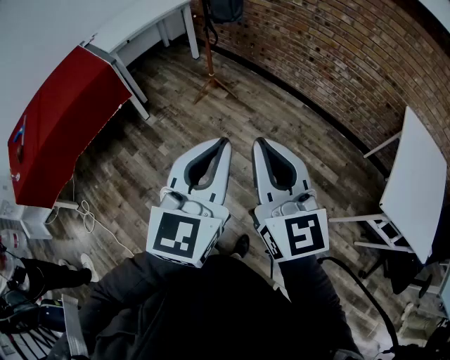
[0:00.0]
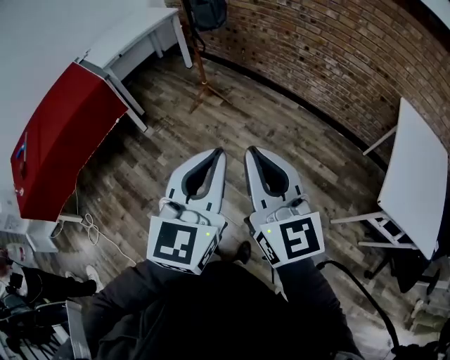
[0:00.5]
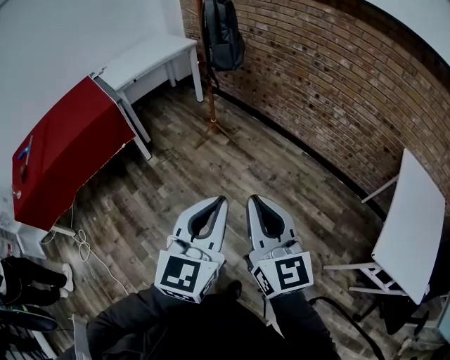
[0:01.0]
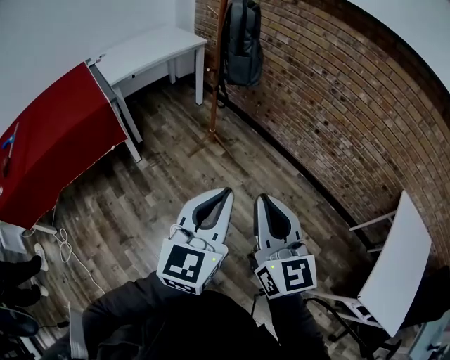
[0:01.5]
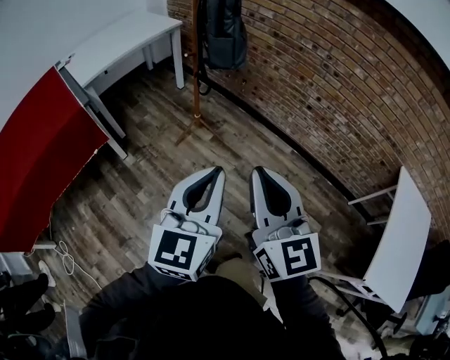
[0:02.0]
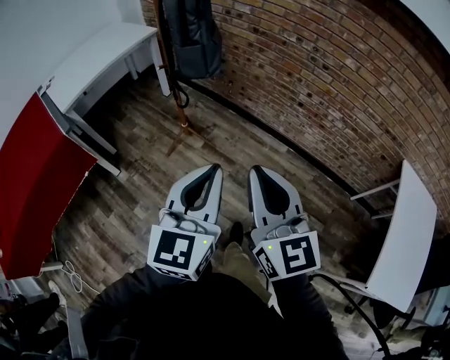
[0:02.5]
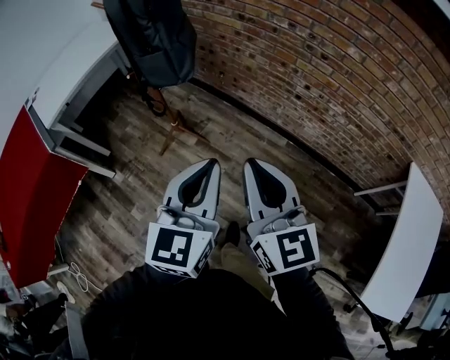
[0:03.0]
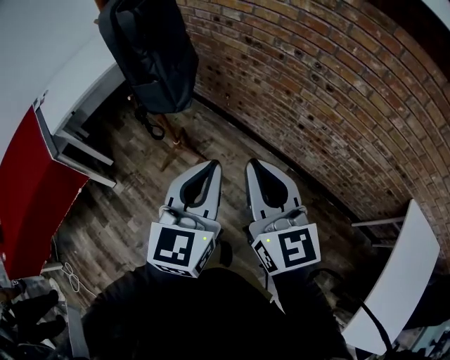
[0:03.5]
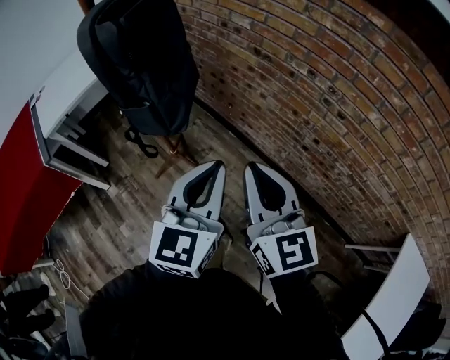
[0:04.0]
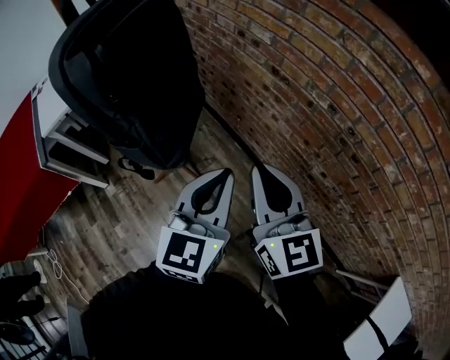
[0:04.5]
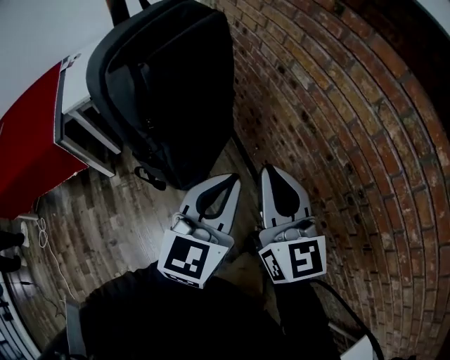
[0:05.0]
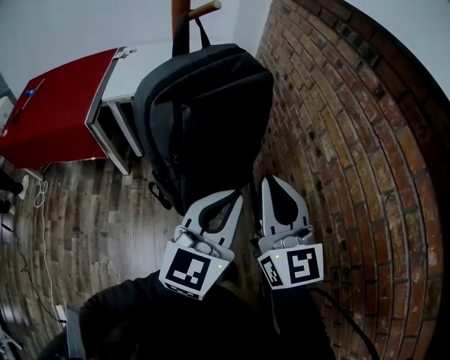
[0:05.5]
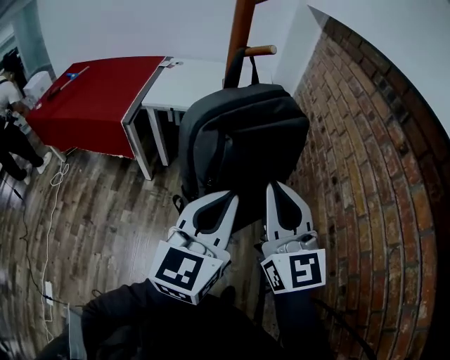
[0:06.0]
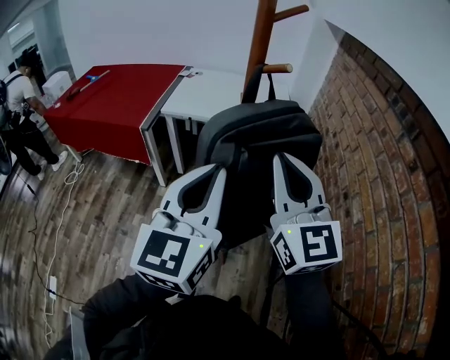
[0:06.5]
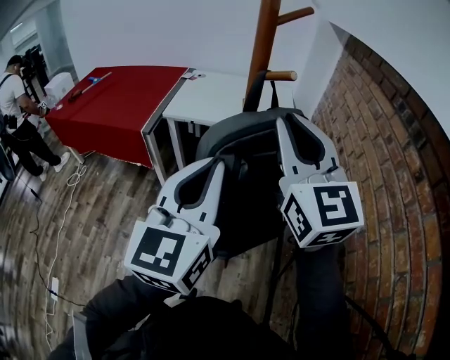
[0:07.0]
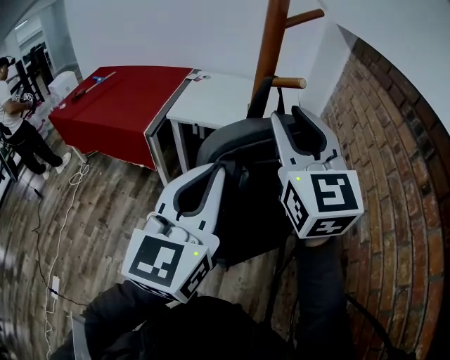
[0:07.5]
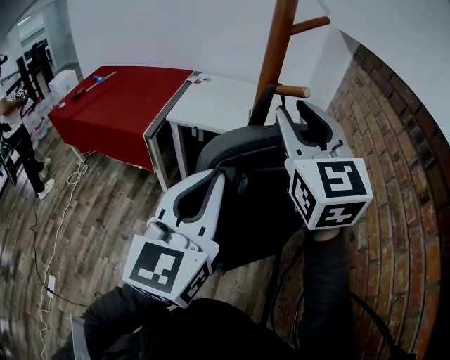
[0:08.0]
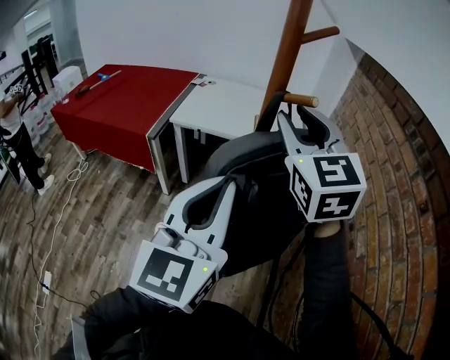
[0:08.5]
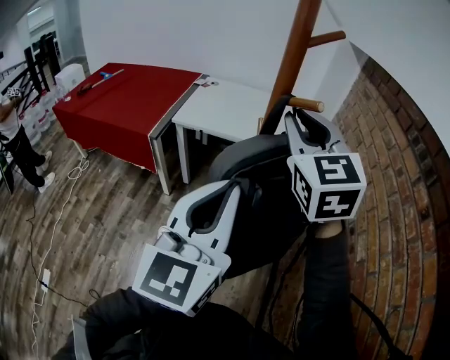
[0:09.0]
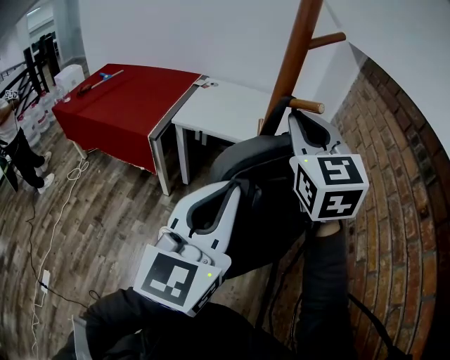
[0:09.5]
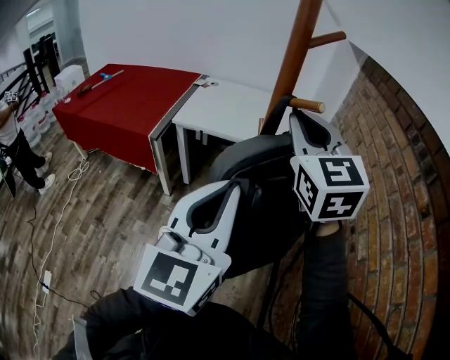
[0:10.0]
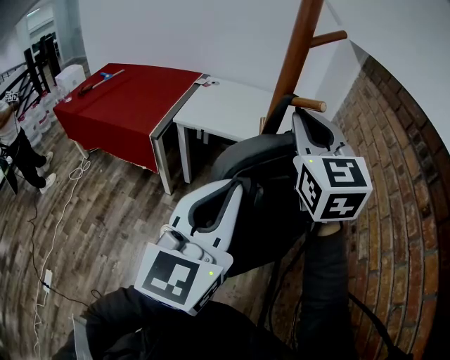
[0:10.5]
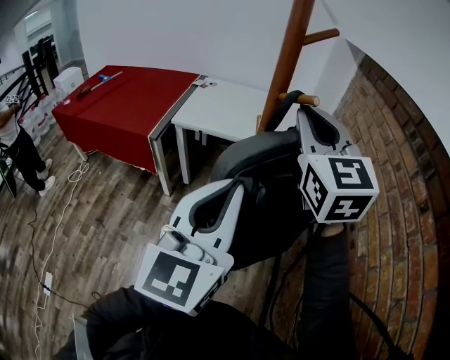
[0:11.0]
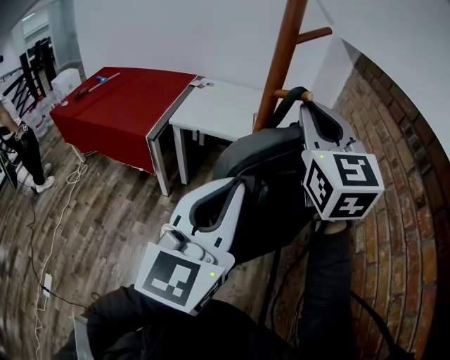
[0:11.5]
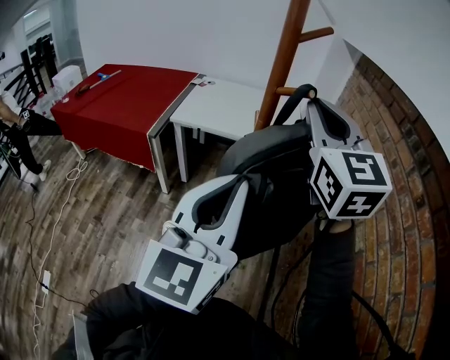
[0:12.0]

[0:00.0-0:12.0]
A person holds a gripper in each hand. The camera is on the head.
0:00.0 to 0:02.0: Both grippers travel together forward, roughly 30 cm.
0:02.0 to 0:04.0: The two grippers travel together, forward and to the right, roughly 50 cm.
0:04.0 to 0:06.0: The left gripper moves roughly 30 cm, and turns by some 50 degrees, while the right gripper shifts by roughly 35 cm, and changes its angle by approximately 50 degrees.
0:06.0 to 0:08.0: The left gripper moves upward, forward and to the left, approximately 15 cm. Meanwhile the right gripper moves forward and upward, roughly 20 cm, and opens.
0:08.0 to 0:10.0: The right gripper closes its fingers.
0:10.0 to 0:12.0: The right gripper moves some 5 cm.

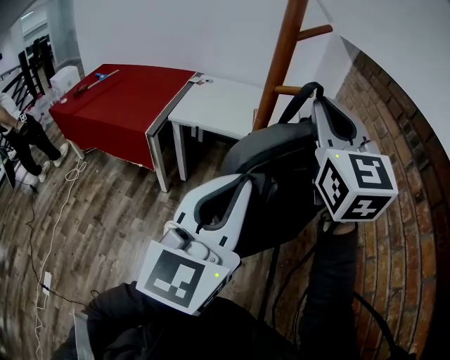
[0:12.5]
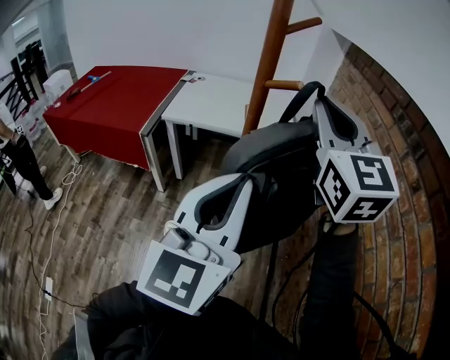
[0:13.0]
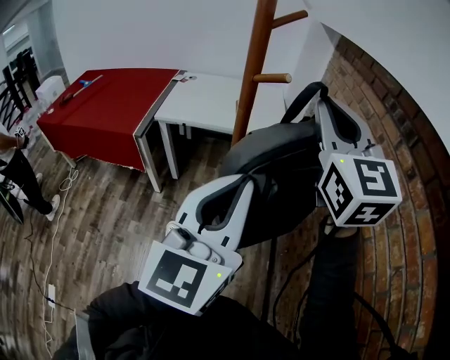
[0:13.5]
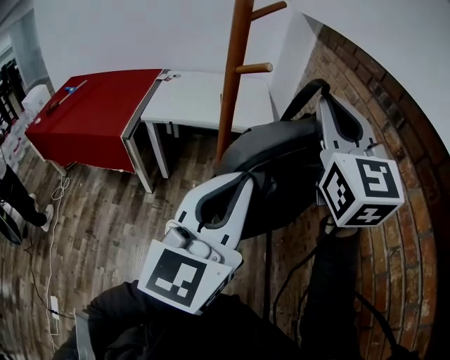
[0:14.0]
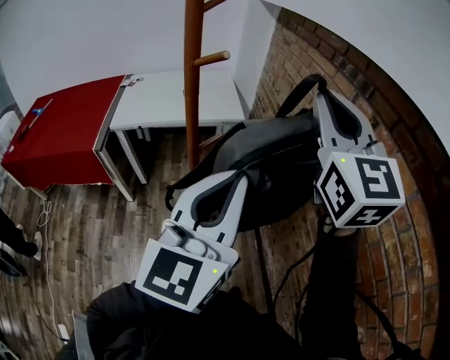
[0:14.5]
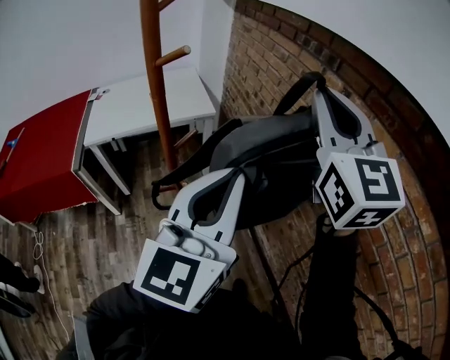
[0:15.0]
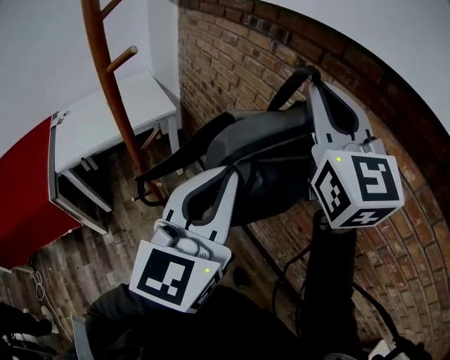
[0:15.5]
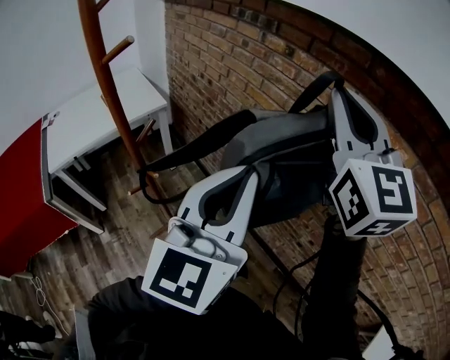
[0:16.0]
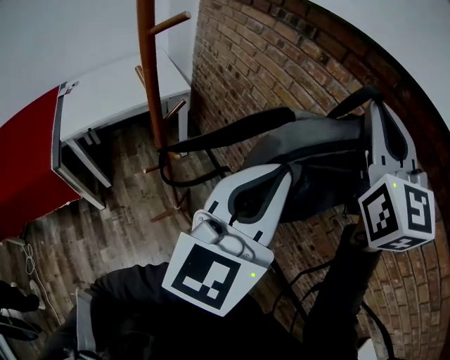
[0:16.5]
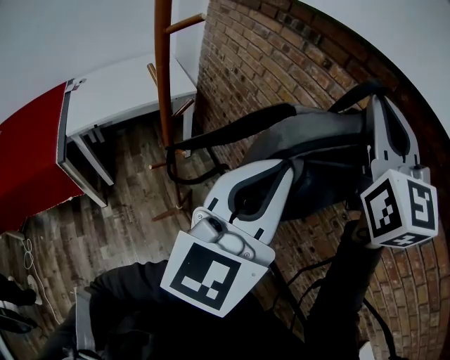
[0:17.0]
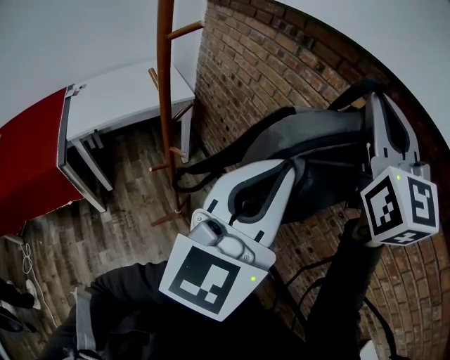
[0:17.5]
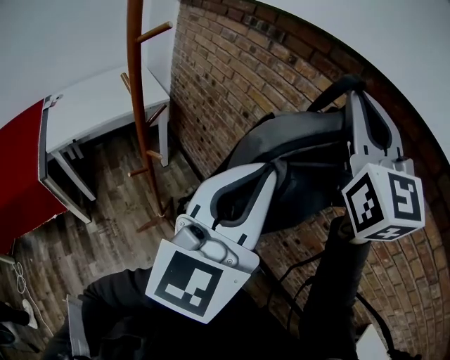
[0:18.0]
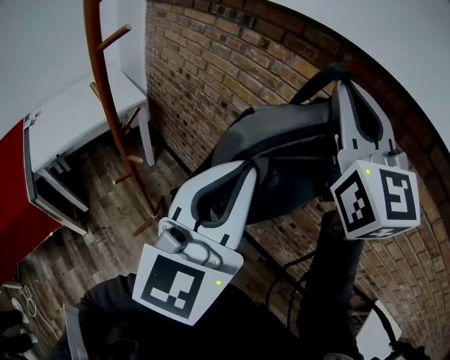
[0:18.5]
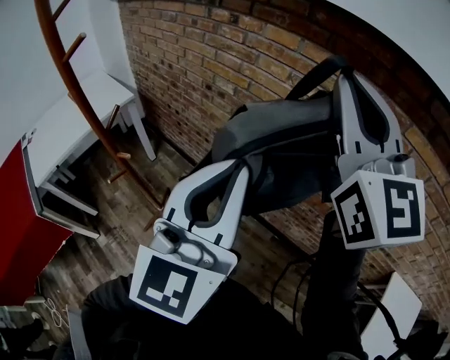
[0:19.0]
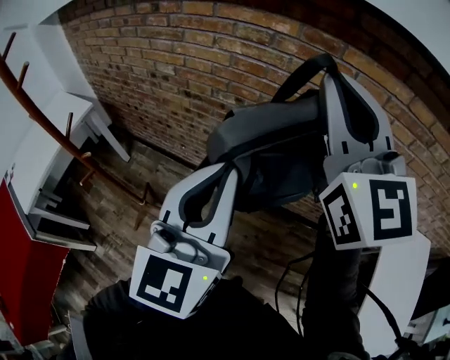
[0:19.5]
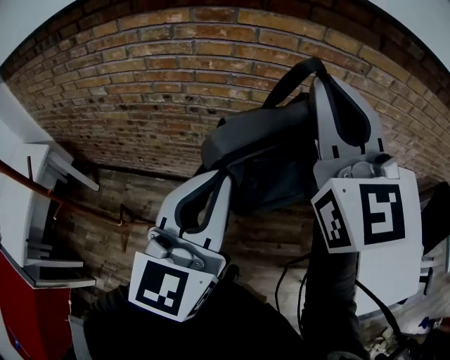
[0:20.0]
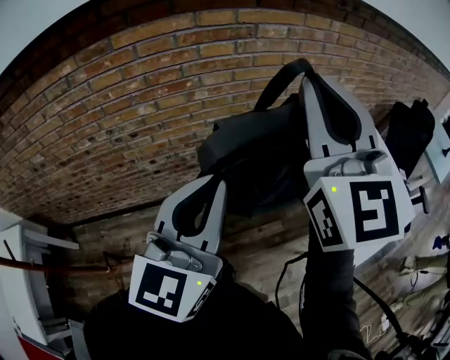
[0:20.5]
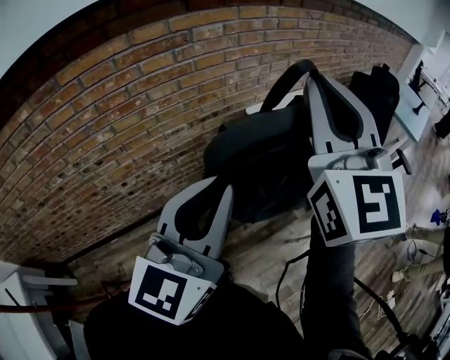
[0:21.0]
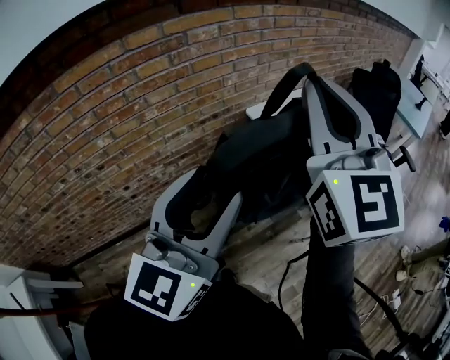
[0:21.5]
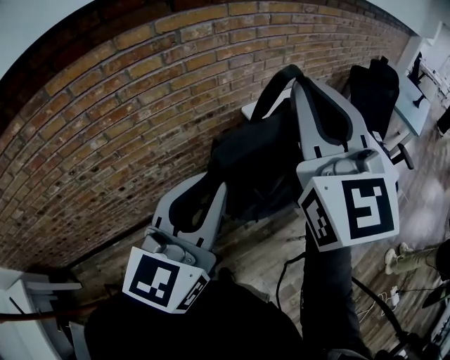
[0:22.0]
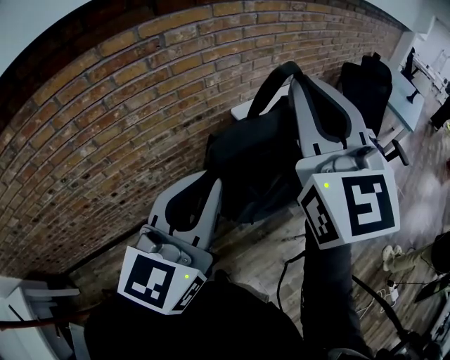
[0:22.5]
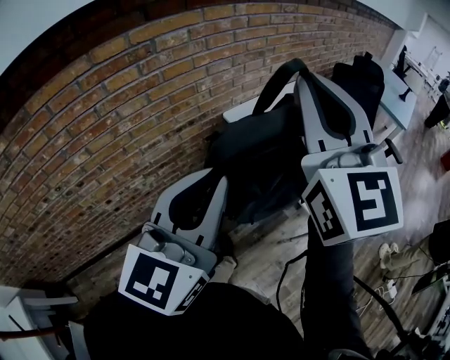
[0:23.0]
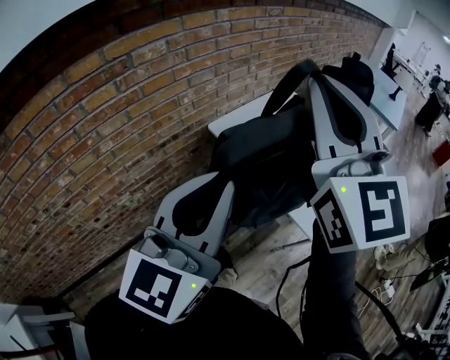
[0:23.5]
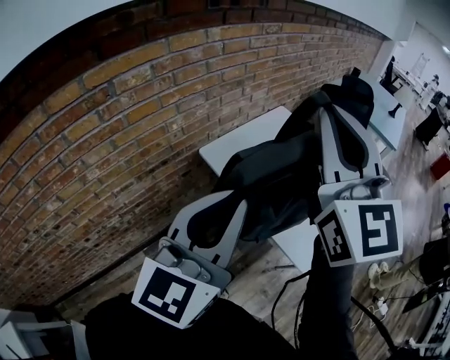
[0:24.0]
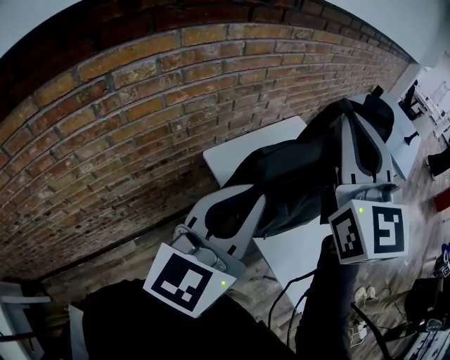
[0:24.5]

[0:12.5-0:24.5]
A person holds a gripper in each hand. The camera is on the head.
0:12.5 to 0:14.5: The right gripper moves to the right and backward, approximately 15 cm, and swivels roughly 20 degrees. Meanwhile the left gripper goes about 10 cm to the right, and swivels some 20 degrees.
0:14.5 to 0:16.5: The right gripper moves approximately 20 cm, and turns by some 30 degrees. Meanwhile the left gripper changes place by approximately 10 cm, and changes its angle by about 30 degrees.
0:16.5 to 0:18.5: The grippers both shift backward by approximately 5 cm.
0:18.5 to 0:20.5: The two grippers travel together, about 60 cm. The left gripper changes its angle by roughly 60 degrees. The right gripper rotates approximately 60 degrees.
0:20.5 to 0:22.5: The left gripper is displaced to the right and forward by roughly 15 cm, changes its angle by roughly 20 degrees, and opens, then closes again, while the right gripper is displaced to the right by approximately 15 cm.
0:22.5 to 0:24.5: Both grippers move forward and to the right, about 25 cm.

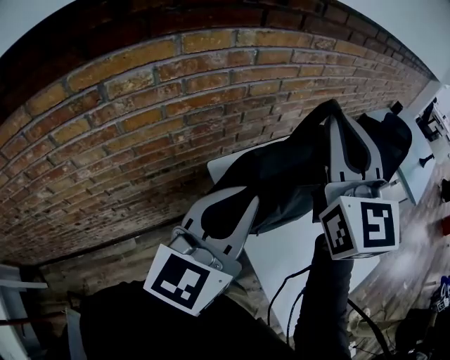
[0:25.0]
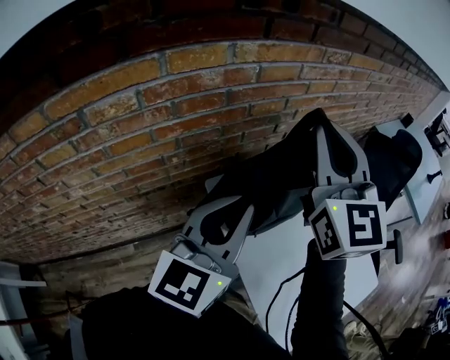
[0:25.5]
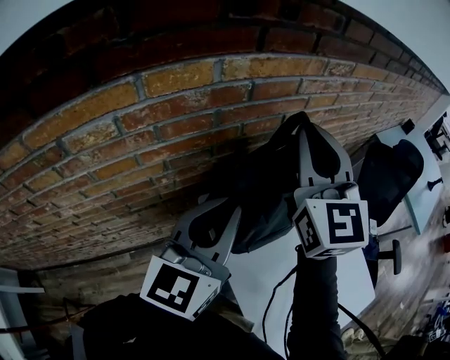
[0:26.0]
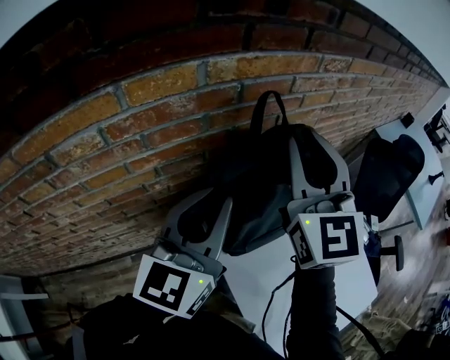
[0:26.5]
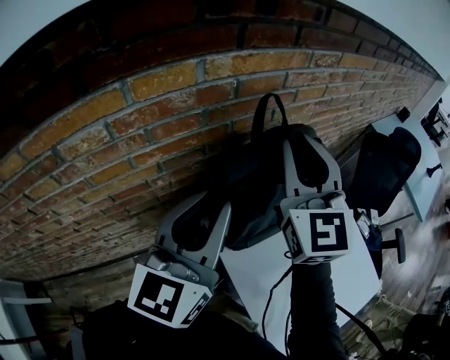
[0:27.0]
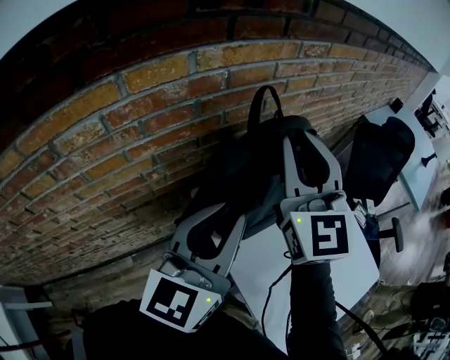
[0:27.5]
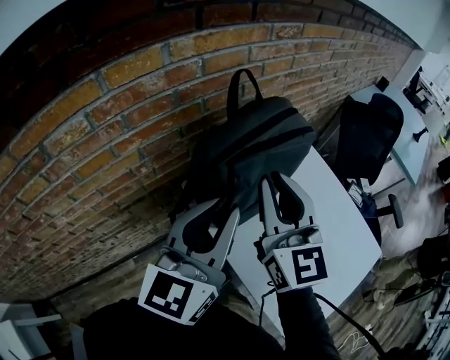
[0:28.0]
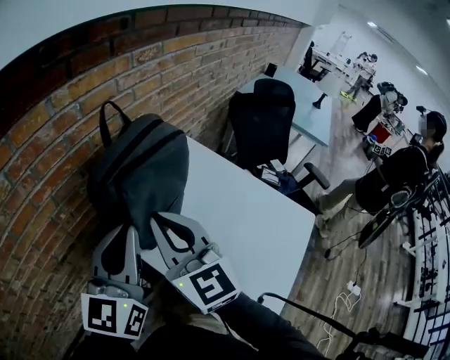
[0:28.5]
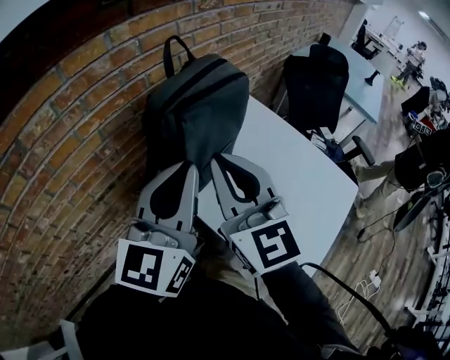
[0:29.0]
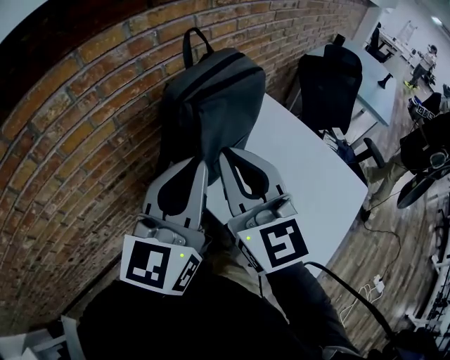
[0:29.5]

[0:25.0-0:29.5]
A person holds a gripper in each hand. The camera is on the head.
0:25.0 to 0:27.0: The left gripper shifts approximately 15 cm forward. Meanwhile the right gripper goes some 15 cm forward and downward.
0:27.0 to 0:29.5: The left gripper is displaced backward and to the right by roughly 15 cm. Meanwhile the right gripper travels backward by approximately 25 cm.
